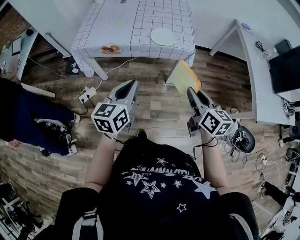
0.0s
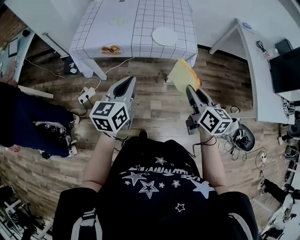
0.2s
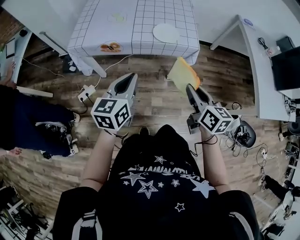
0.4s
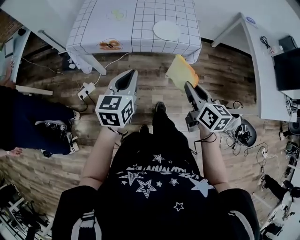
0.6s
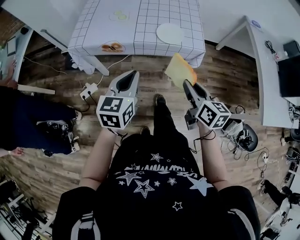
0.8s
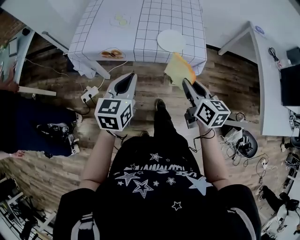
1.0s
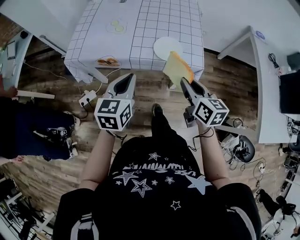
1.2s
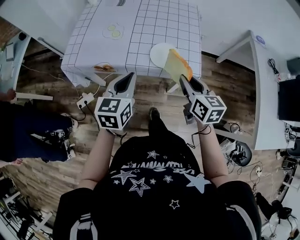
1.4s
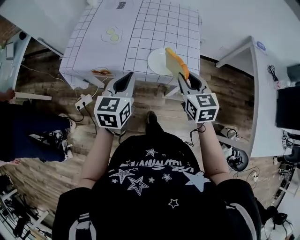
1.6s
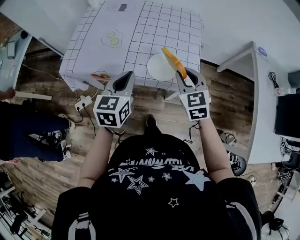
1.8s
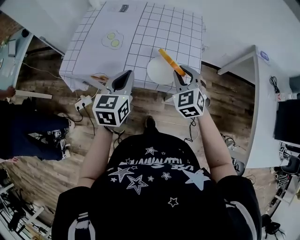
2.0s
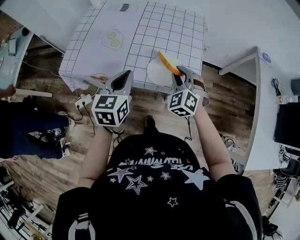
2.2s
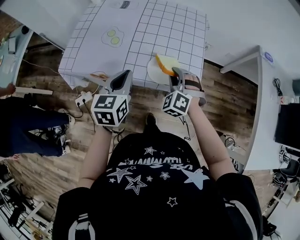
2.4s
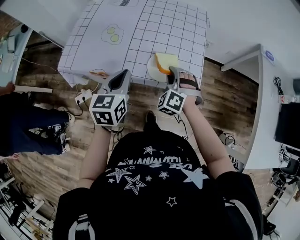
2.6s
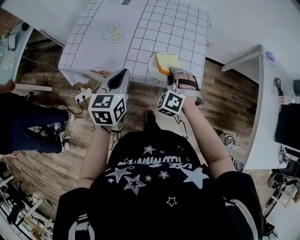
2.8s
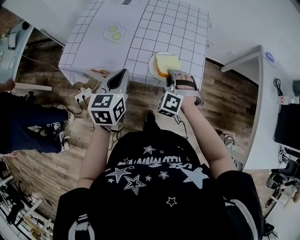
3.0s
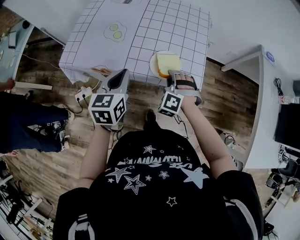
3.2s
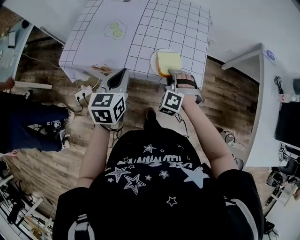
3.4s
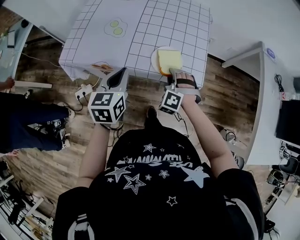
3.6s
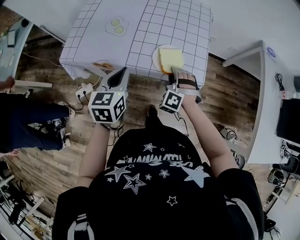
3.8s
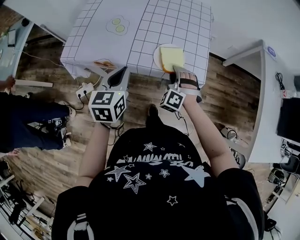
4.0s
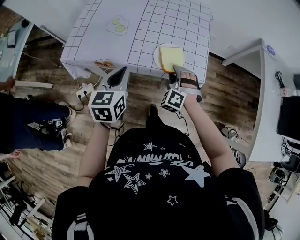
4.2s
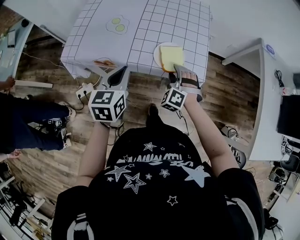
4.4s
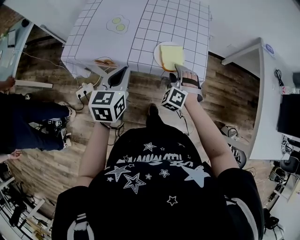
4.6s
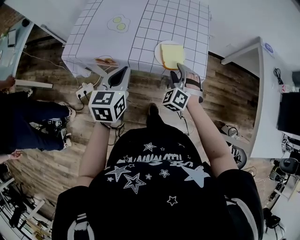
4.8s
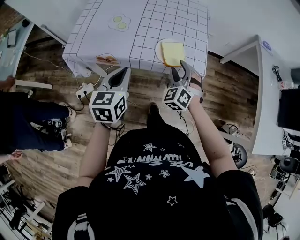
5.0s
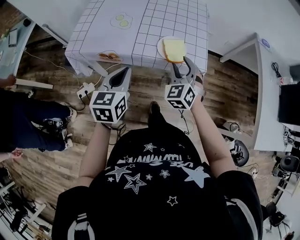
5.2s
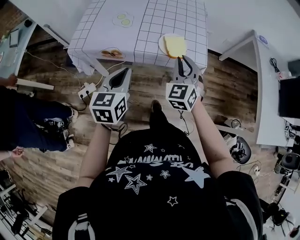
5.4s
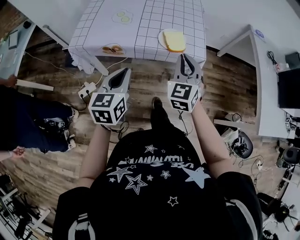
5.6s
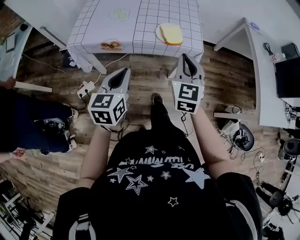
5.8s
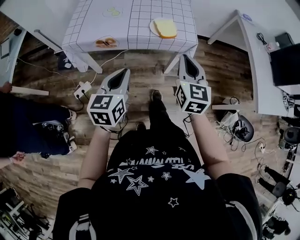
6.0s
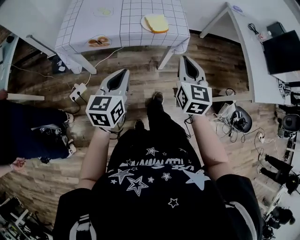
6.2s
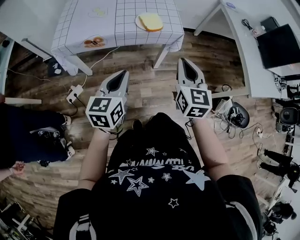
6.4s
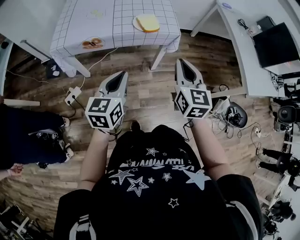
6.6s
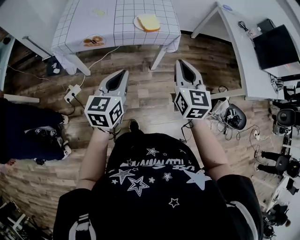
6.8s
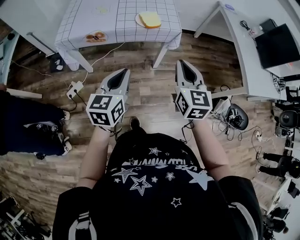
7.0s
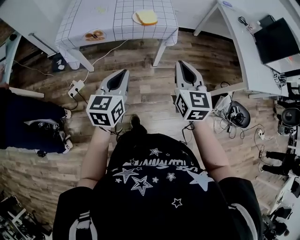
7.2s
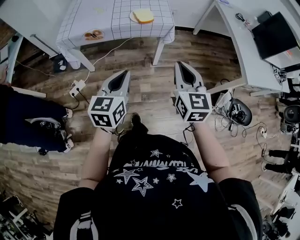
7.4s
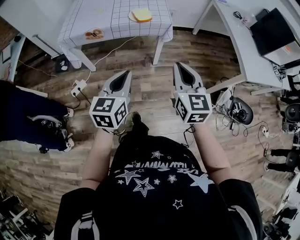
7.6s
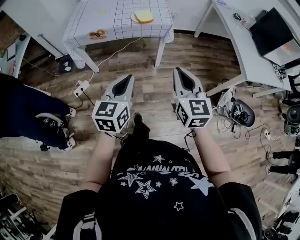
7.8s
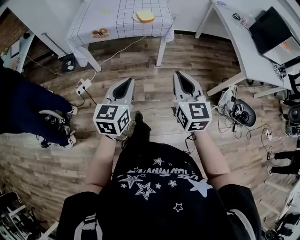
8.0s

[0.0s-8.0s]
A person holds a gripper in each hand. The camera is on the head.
0.0s to 1.6s: The grippers both shift forward by approximately 25 cm. The right gripper rotates about 30 degrees.
1.6s to 3.2s: The right gripper shifts roughly 15 cm downward and to the left, and rolls counterclockwise, seen from behind, by some 70 degrees.
3.2s to 4.8s: The right gripper opens its fingers.
4.8s to 6.4s: The left gripper is displaced backward by approximately 15 cm, while the right gripper moves backward and upward, approximately 30 cm, rolls clockwise, seen from behind, by about 70 degrees, and closes.
6.4s to 8.0s: The right gripper moves backward, about 25 cm. The left gripper shifts approximately 25 cm backward and to the right.

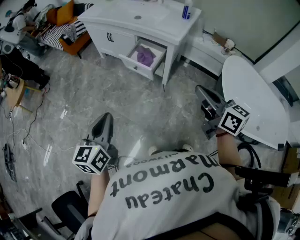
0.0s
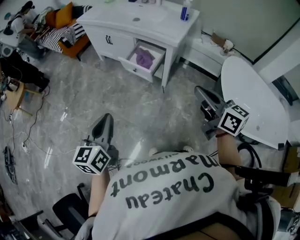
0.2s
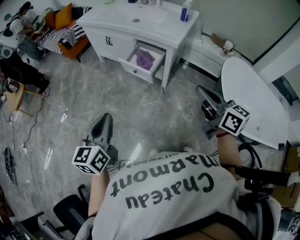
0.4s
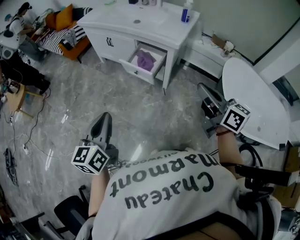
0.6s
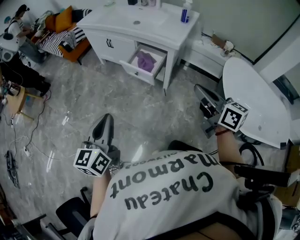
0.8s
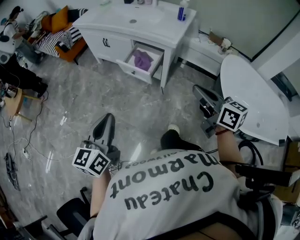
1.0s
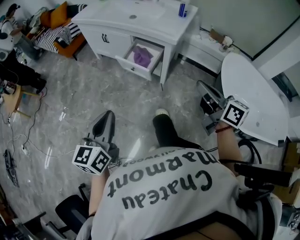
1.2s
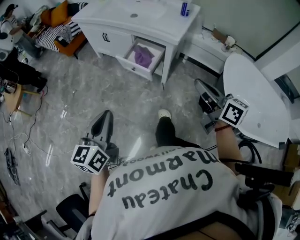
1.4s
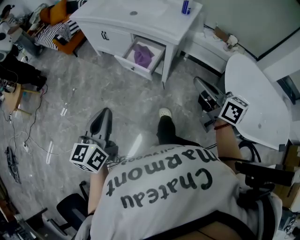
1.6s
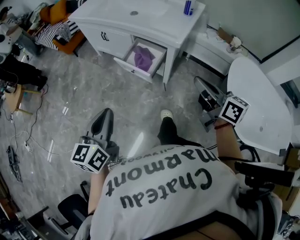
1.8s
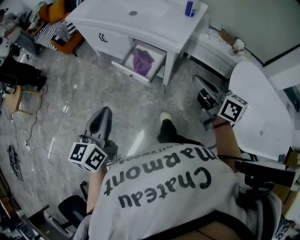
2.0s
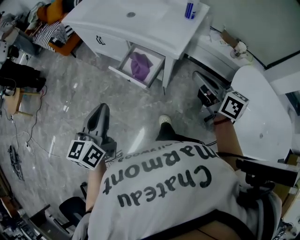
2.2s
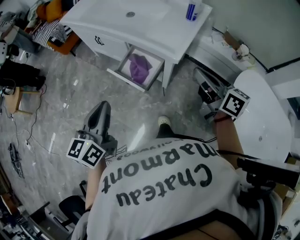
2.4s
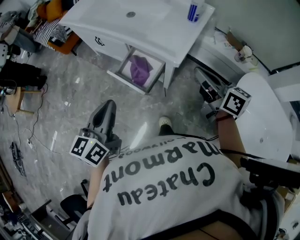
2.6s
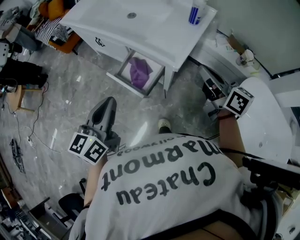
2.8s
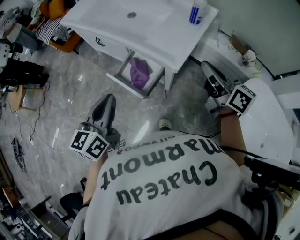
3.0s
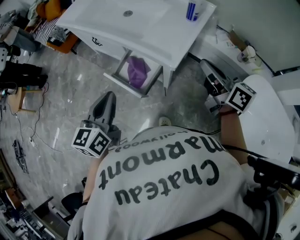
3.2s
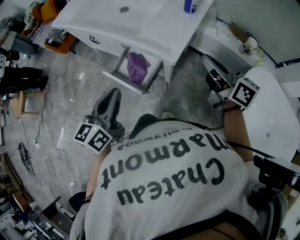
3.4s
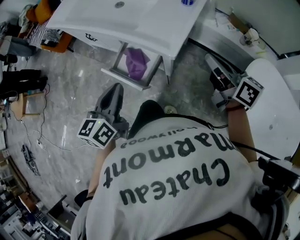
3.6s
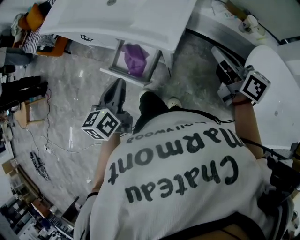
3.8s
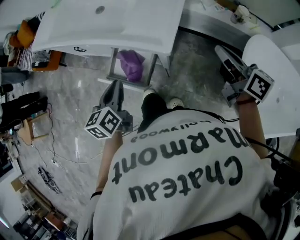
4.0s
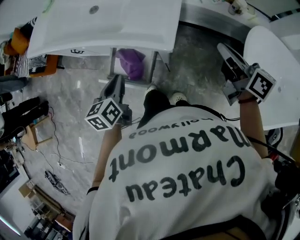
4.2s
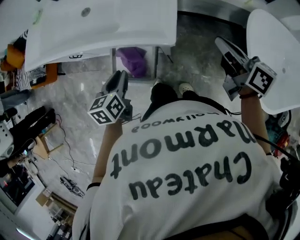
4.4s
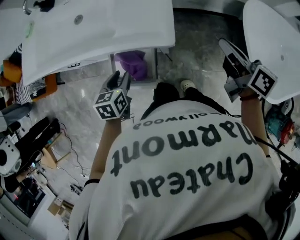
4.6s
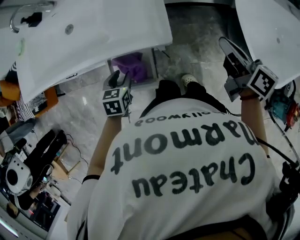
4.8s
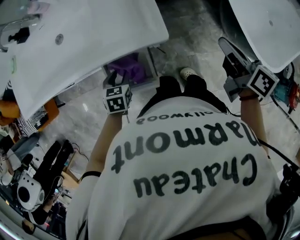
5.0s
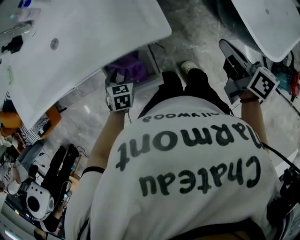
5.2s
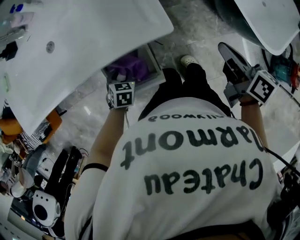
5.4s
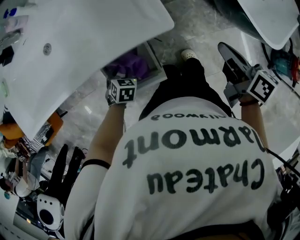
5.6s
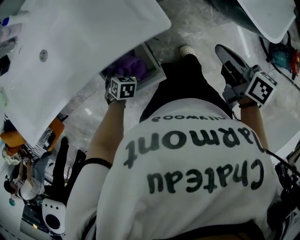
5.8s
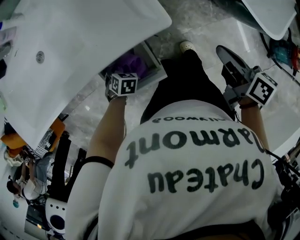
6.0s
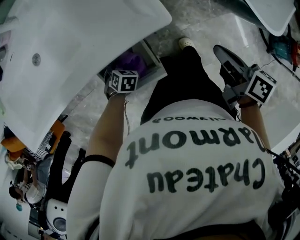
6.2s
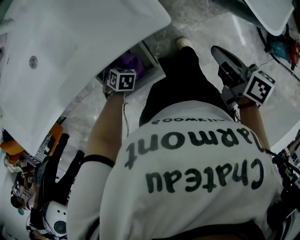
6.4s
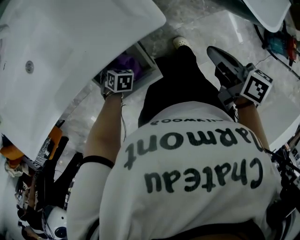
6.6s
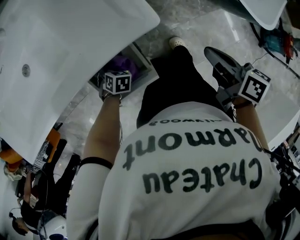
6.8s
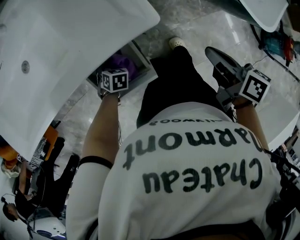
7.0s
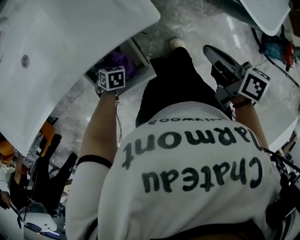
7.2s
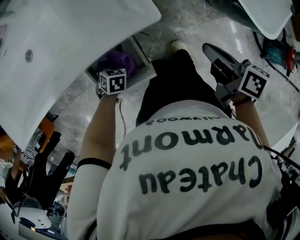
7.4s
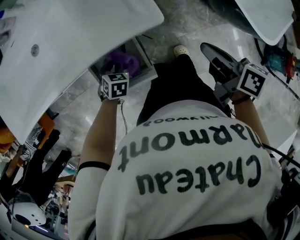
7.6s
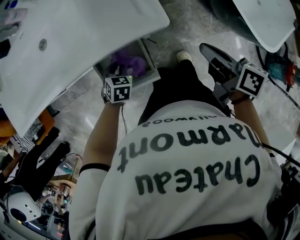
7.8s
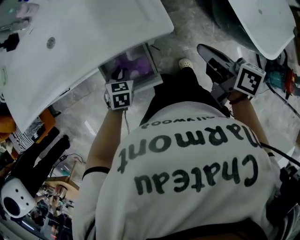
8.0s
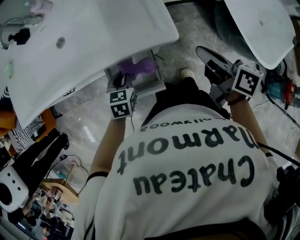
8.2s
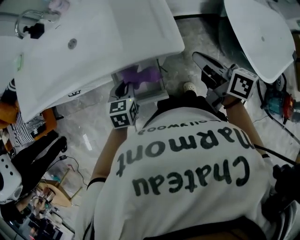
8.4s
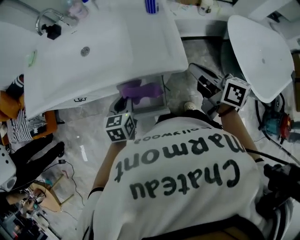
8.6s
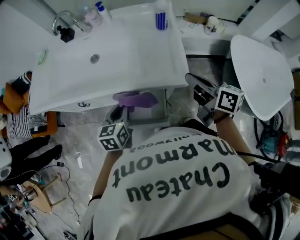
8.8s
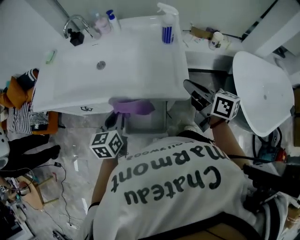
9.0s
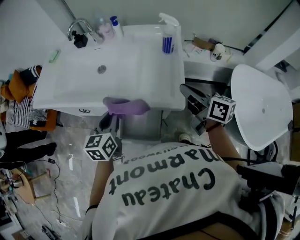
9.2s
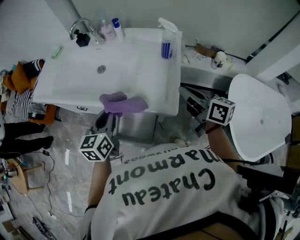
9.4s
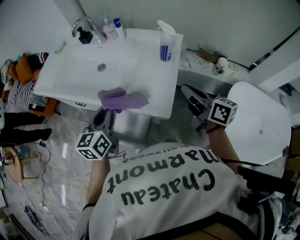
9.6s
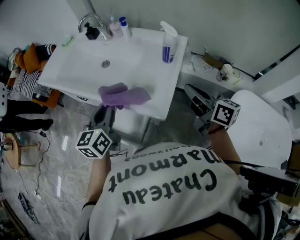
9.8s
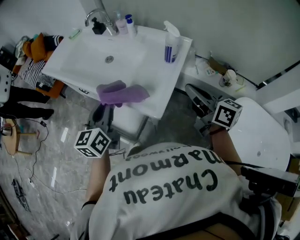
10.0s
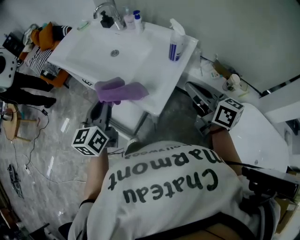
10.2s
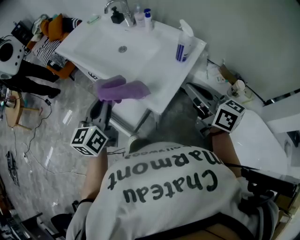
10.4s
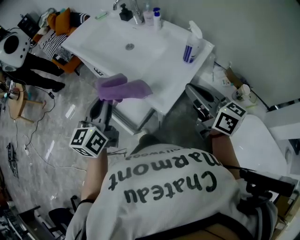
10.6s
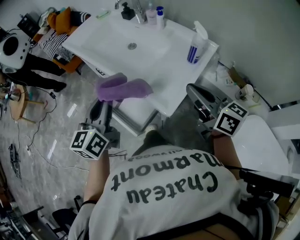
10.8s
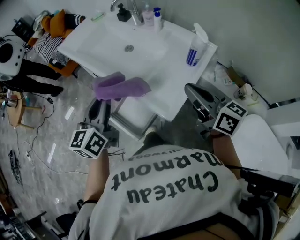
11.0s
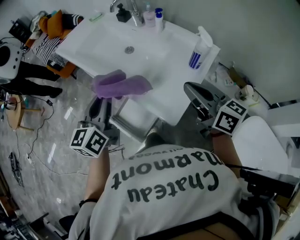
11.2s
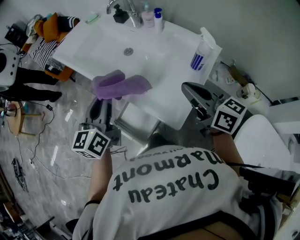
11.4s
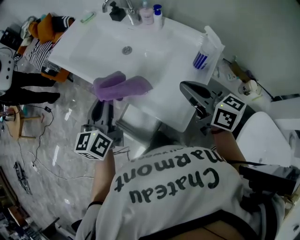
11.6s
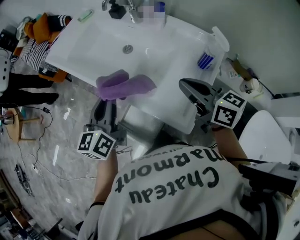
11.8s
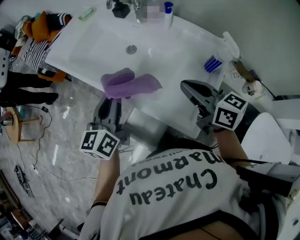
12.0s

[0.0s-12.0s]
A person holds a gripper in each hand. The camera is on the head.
0.0s to 1.6s: The two grippers go approximately 10 cm forward.
1.6s to 3.0s: The grippers both shift forward and to the right by some 30 cm.
3.0s to 4.4s: The right gripper heads downward, covering about 5 cm, and rotates roughly 30 degrees. Meanwhile the left gripper is displaced downward and forward by approximately 25 cm, and turns by approximately 30 degrees.
4.4s to 6.0s: The left gripper goes about 25 cm downward, and rolls clockwise, seen from behind, by roughly 60 degrees. The right gripper ends up approximately 15 cm from where it was, and turns by approximately 40 degrees.
6.0s to 7.6s: The left gripper closes.
7.6s to 9.0s: The right gripper shifts some 20 cm upward, forward and to the left, and changes its angle by approximately 30 degrees. Meanwhile the left gripper is displaced upward by roughly 30 cm, and points its fingers about 40 degrees further upward.
9.0s to 10.4s: The right gripper shifts by about 15 cm, and swivels roughly 40 degrees. The left gripper moves upward, some 15 cm, and rotates about 40 degrees.
10.4s to 12.0s: The left gripper shifts roughly 20 cm forward. The right gripper travels forward and to the left by approximately 20 cm.

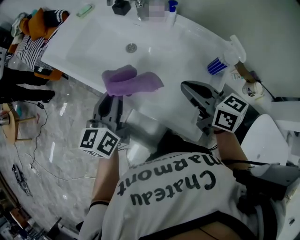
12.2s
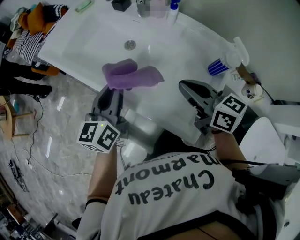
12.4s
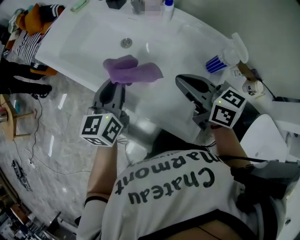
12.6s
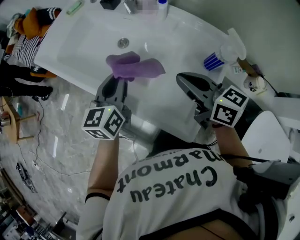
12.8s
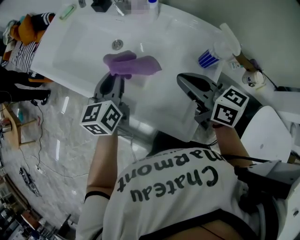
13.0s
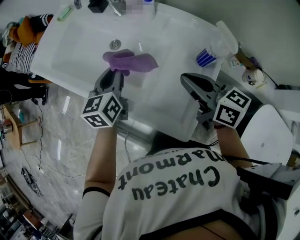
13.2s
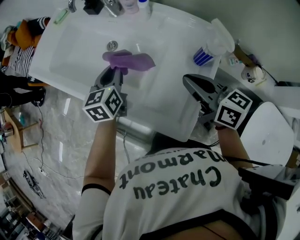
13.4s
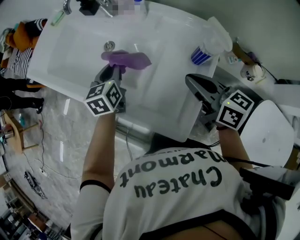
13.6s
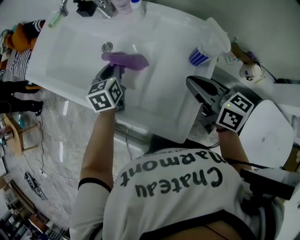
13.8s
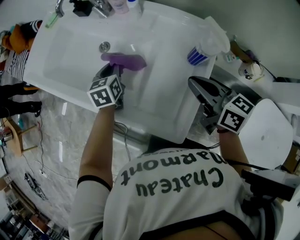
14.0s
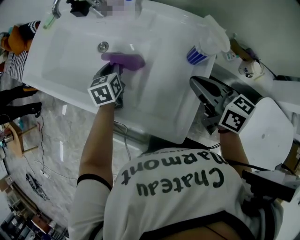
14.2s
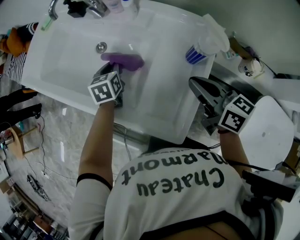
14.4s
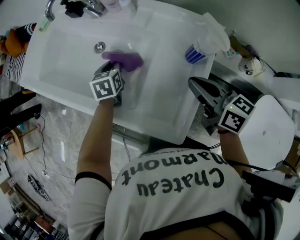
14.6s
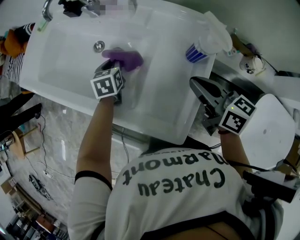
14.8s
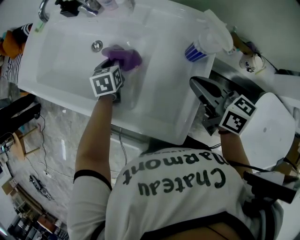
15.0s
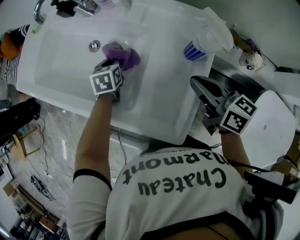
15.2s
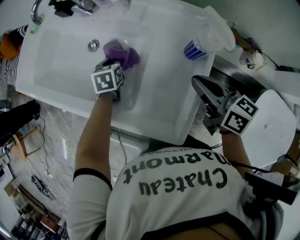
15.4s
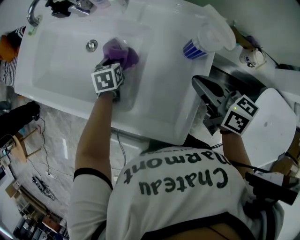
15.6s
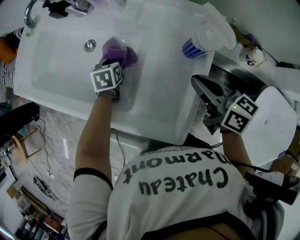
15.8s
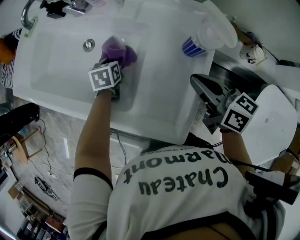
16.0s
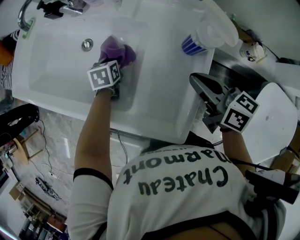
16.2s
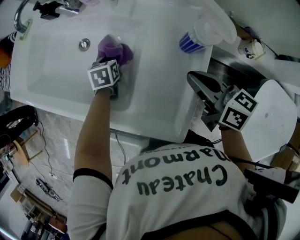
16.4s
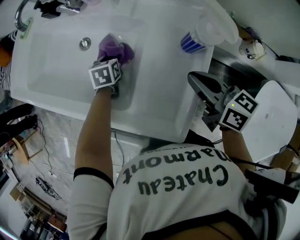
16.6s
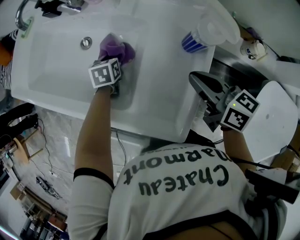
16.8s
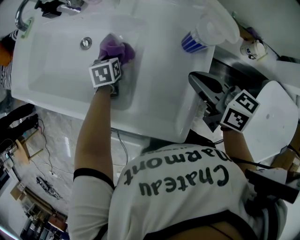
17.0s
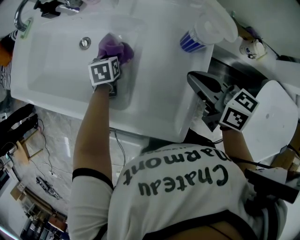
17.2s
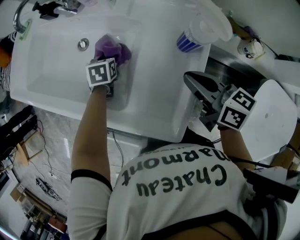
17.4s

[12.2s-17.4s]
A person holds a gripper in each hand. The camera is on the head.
12.2s to 14.0s: The left gripper shifts some 25 cm downward, forward and to the right, and changes its angle by approximately 30 degrees, while the right gripper is displaced to the right by roughly 15 cm.
14.0s to 15.6s: The left gripper goes approximately 10 cm downward.
15.6s to 17.4s: The grippers move only a little.
